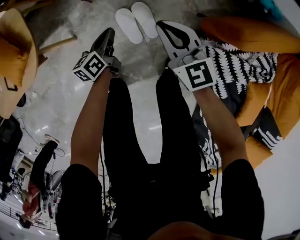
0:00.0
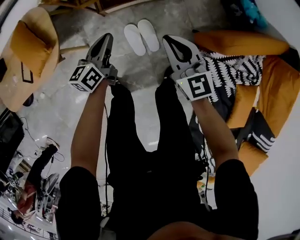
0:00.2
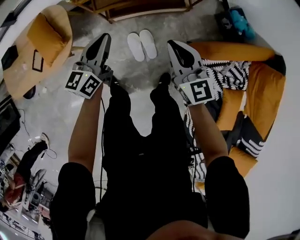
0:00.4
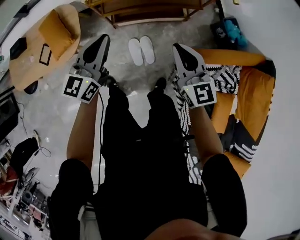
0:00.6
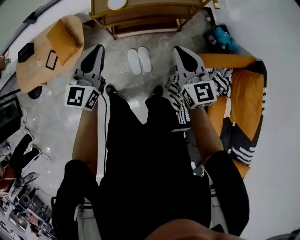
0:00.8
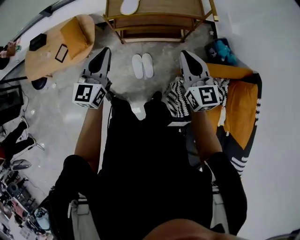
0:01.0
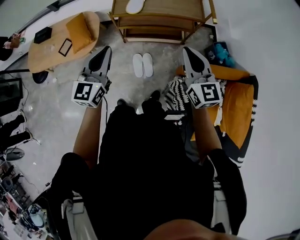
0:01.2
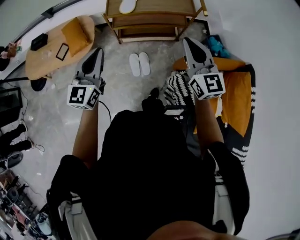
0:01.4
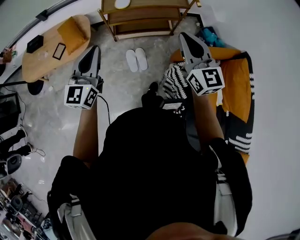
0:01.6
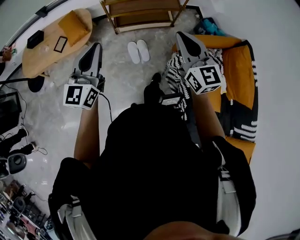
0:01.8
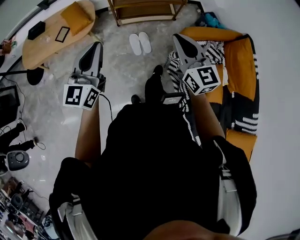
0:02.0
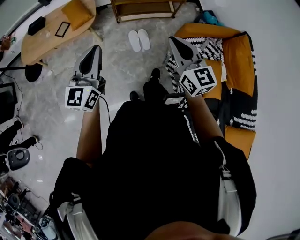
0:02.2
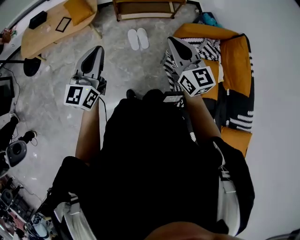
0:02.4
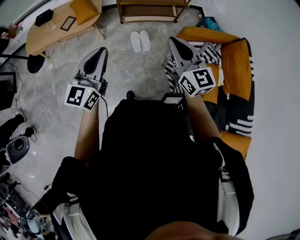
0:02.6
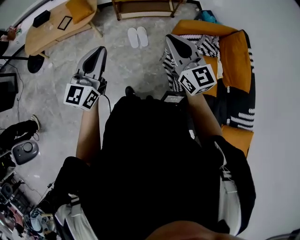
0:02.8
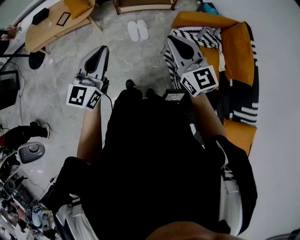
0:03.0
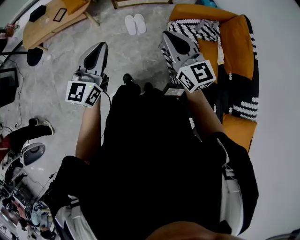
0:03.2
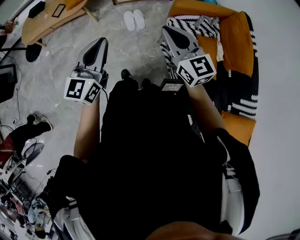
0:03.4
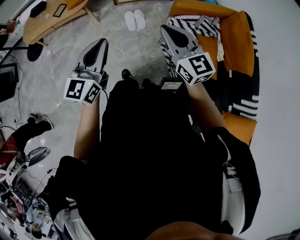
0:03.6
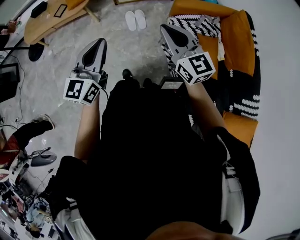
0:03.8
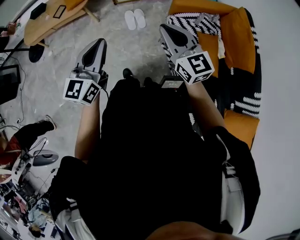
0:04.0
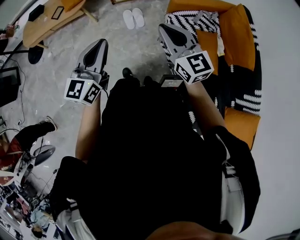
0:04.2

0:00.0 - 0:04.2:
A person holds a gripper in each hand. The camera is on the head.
0:00.0 - 0:01.4: The grippers both shift upward by approximately 60 cm. The left gripper twists some 50 degrees clockwise, seen from behind.
0:01.4 - 0:02.8: Both grippers move backward, about 35 cm.
0:02.8 - 0:04.2: The left gripper travels to the right and backward by approximately 15 cm, while the right gripper moves backward and to the right, approximately 10 cm.

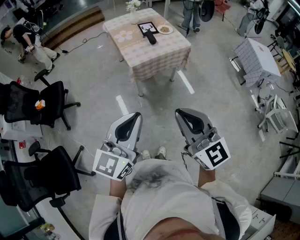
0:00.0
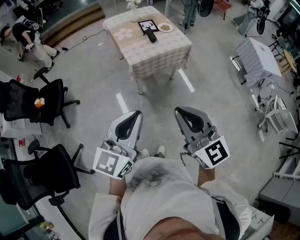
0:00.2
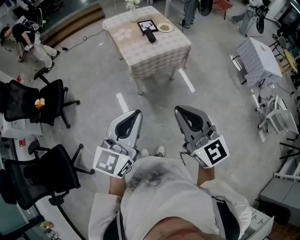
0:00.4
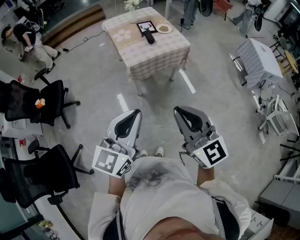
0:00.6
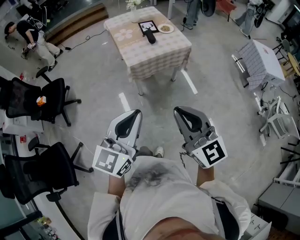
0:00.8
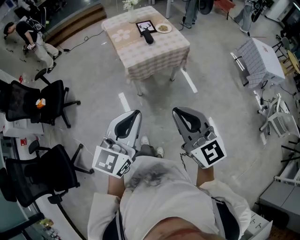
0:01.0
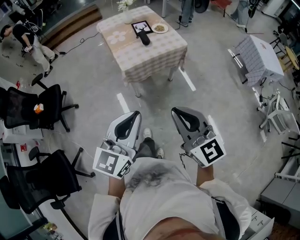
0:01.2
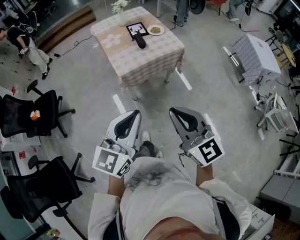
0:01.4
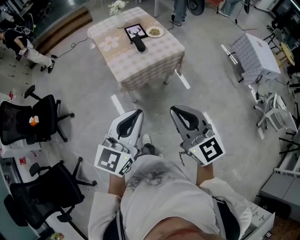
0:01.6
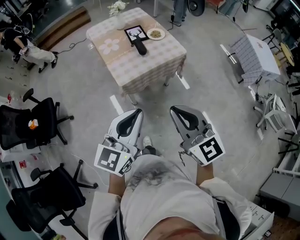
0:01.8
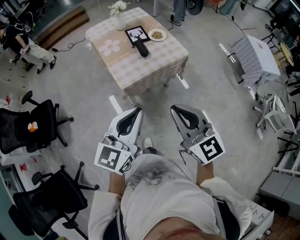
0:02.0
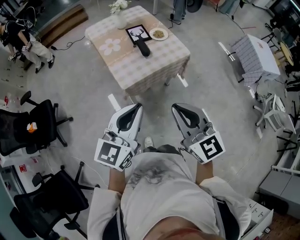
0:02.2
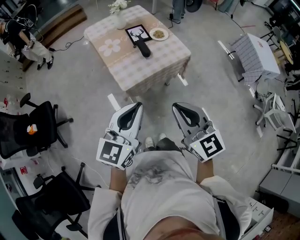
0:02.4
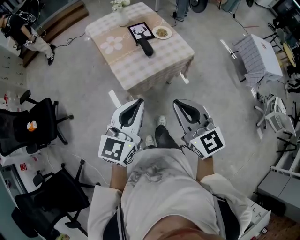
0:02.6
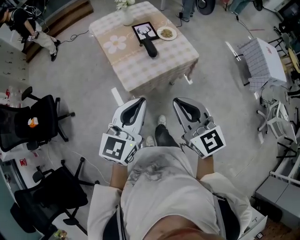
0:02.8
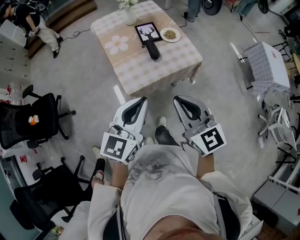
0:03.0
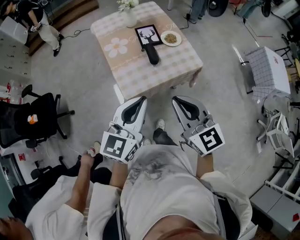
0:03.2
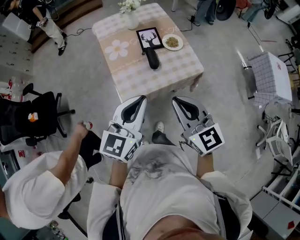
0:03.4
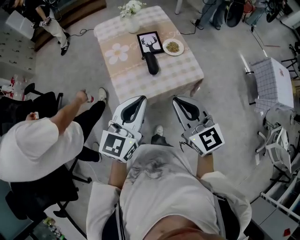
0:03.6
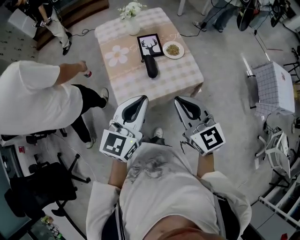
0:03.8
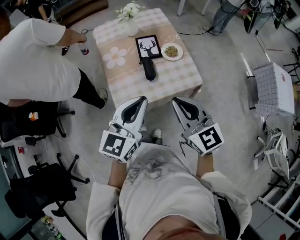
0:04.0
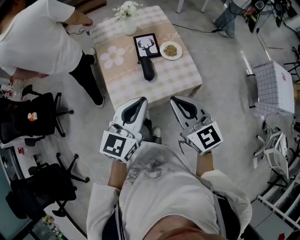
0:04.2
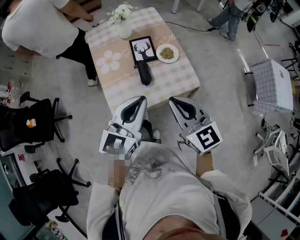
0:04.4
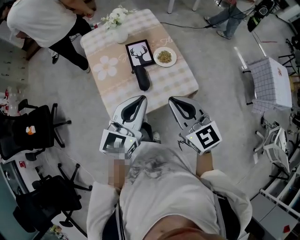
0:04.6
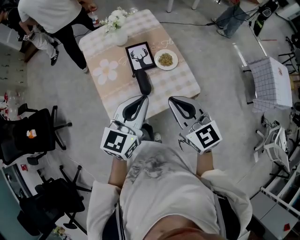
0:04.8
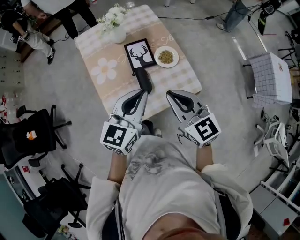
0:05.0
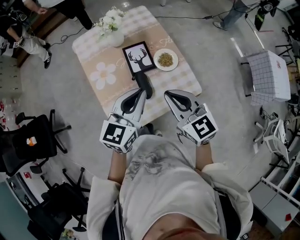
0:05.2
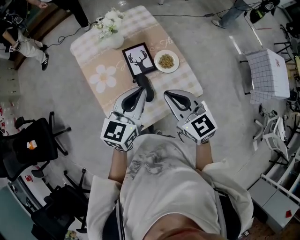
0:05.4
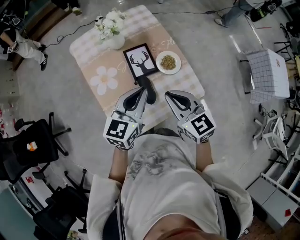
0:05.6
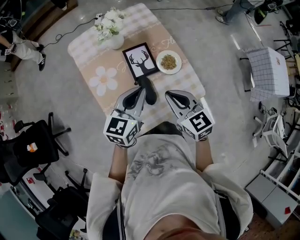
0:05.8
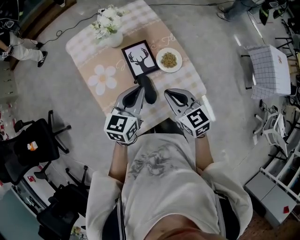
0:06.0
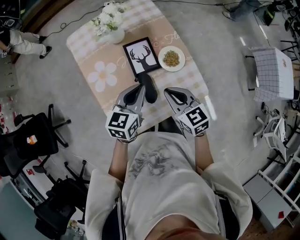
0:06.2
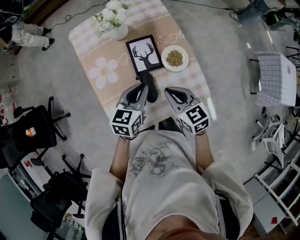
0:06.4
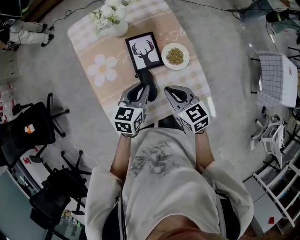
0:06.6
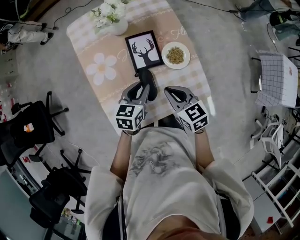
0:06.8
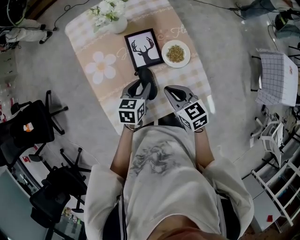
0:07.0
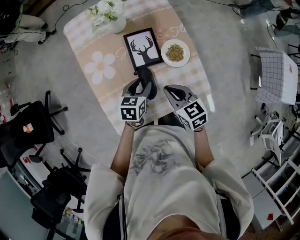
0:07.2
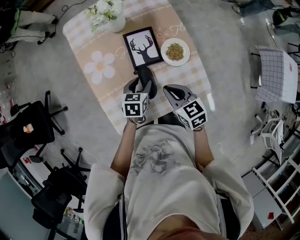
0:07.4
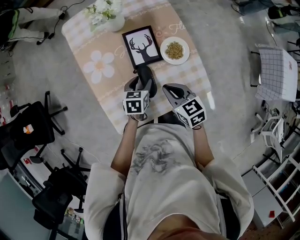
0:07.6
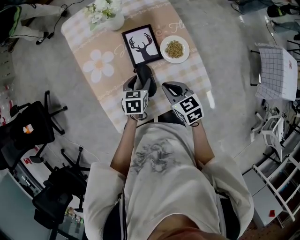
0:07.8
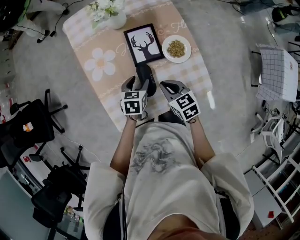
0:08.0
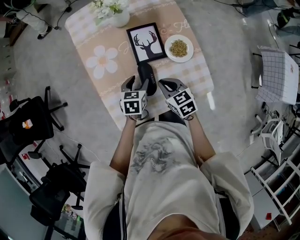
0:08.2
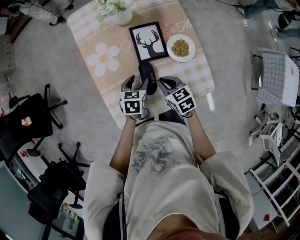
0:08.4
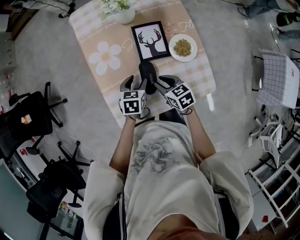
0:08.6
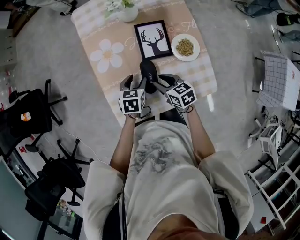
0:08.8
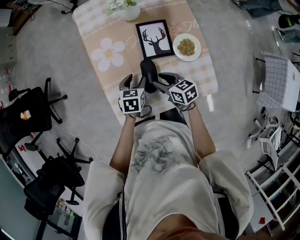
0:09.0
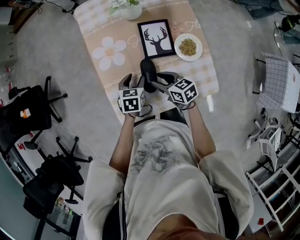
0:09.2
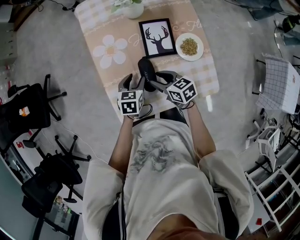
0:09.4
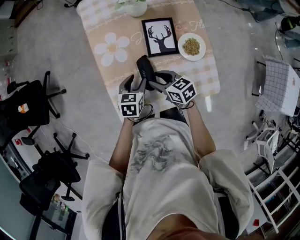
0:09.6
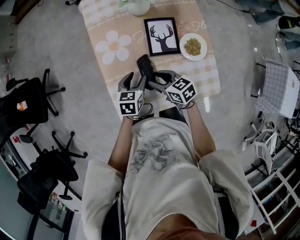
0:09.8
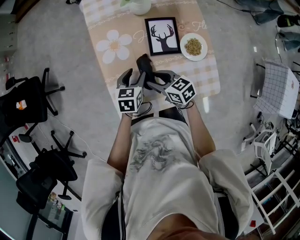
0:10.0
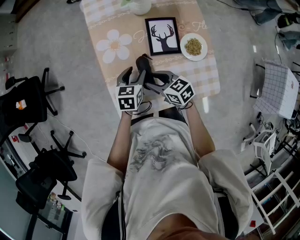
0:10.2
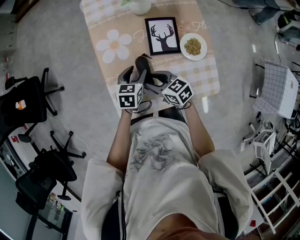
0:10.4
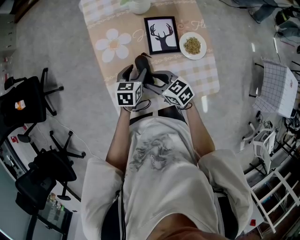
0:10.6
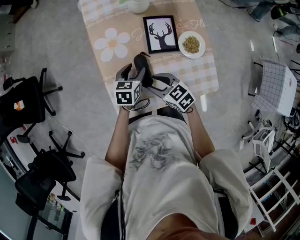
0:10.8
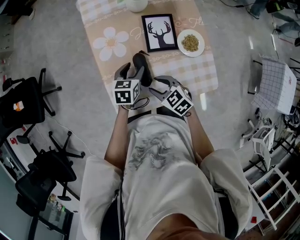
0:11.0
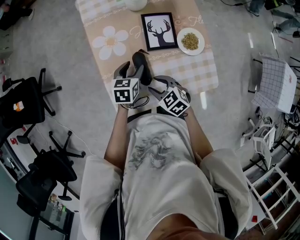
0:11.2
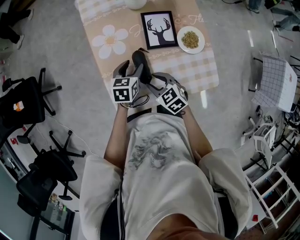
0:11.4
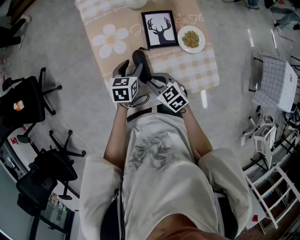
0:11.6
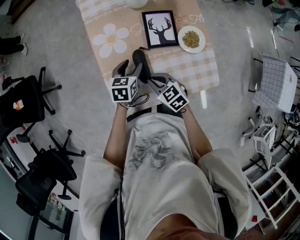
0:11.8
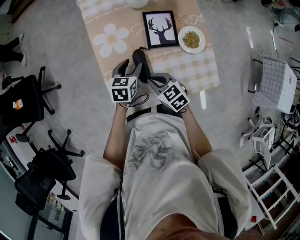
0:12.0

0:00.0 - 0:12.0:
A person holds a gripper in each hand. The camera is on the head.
0:00.0 - 0:01.6: The right gripper is displaced forward by roughly 15 cm. Meanwhile the left gripper heads forward and to the right, covering approximately 20 cm.
0:01.6 - 0:03.0: The grippers both shift forward by some 20 cm.
0:03.0 - 0:04.4: Both grippers travel together forward and to the right, some 20 cm.
0:04.4 - 0:06.0: Both grippers travel together forward and downward, approximately 25 cm.
0:06.0 - 0:07.6: The left gripper travels downward by some 20 cm, points its fingers some 30 degrees further downward, and opens up. The right gripper travels downward by approximately 10 cm.
0:07.6 - 0:09.0: The left gripper goes roughly 10 cm to the left. Meanwhile the right gripper moves downward and to the left, approximately 10 cm, and opens up.
0:09.0 - 0:10.4: The right gripper heads to the left, covering some 5 cm.
0:10.4 - 0:12.0: The right gripper closes.

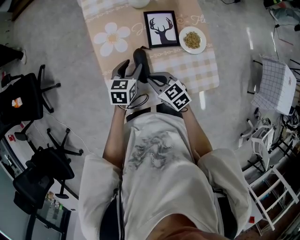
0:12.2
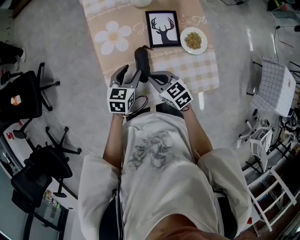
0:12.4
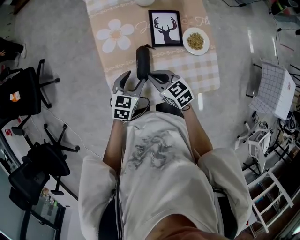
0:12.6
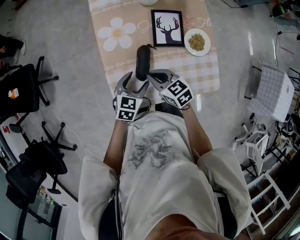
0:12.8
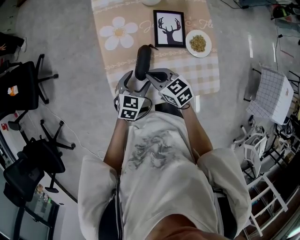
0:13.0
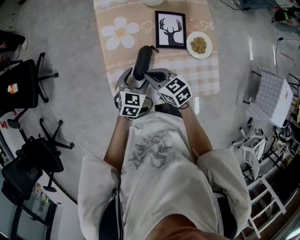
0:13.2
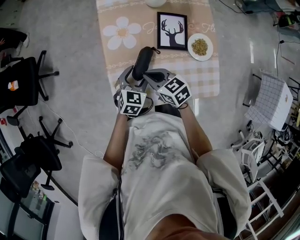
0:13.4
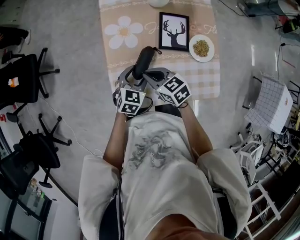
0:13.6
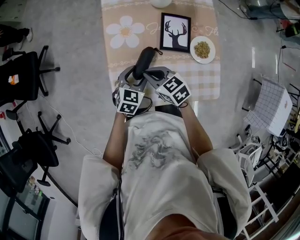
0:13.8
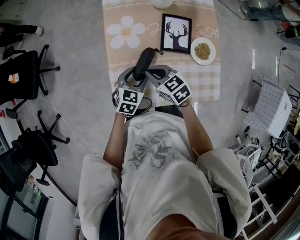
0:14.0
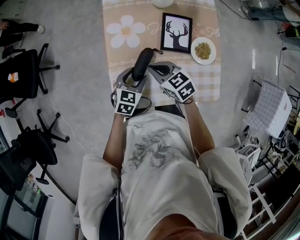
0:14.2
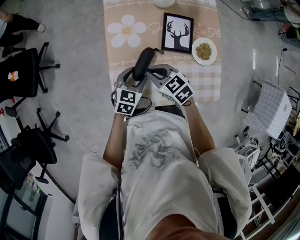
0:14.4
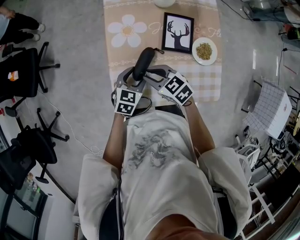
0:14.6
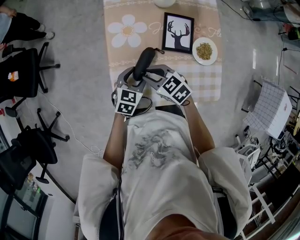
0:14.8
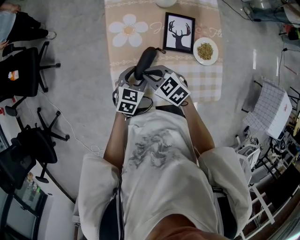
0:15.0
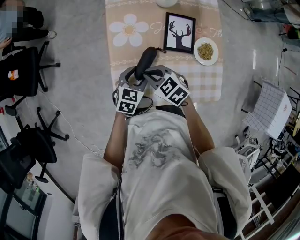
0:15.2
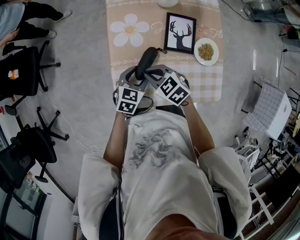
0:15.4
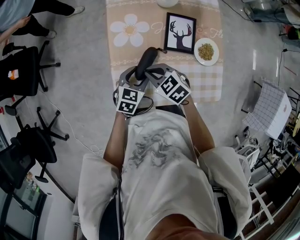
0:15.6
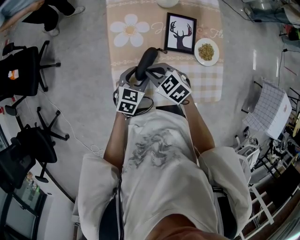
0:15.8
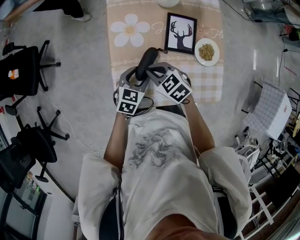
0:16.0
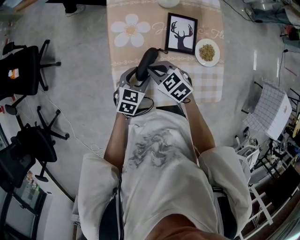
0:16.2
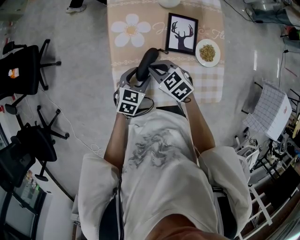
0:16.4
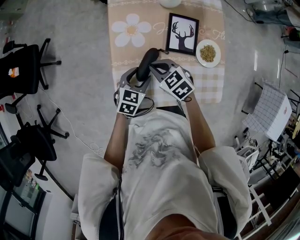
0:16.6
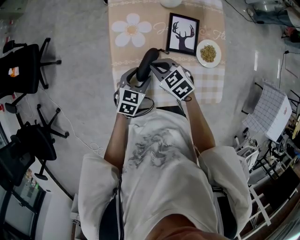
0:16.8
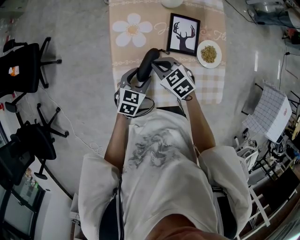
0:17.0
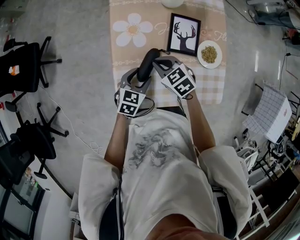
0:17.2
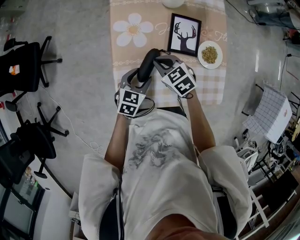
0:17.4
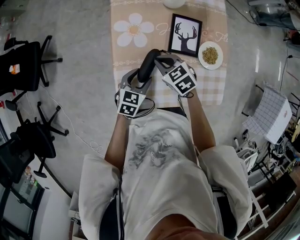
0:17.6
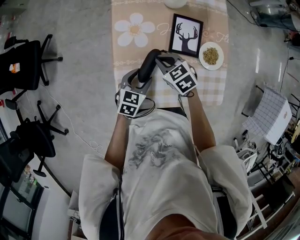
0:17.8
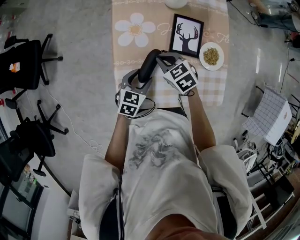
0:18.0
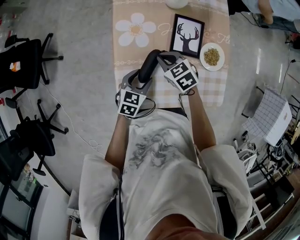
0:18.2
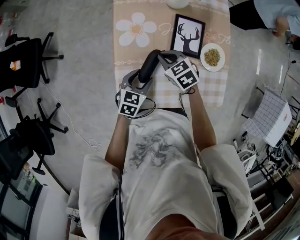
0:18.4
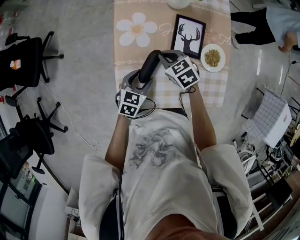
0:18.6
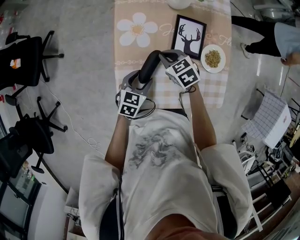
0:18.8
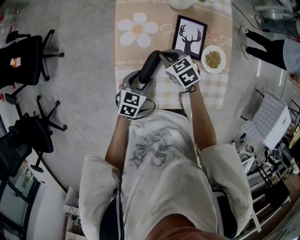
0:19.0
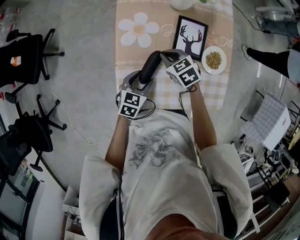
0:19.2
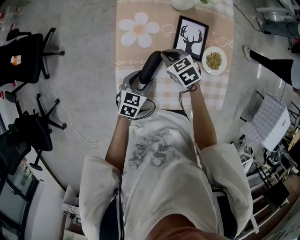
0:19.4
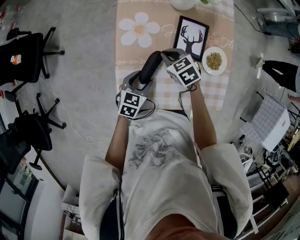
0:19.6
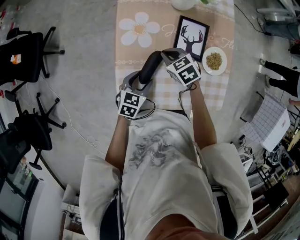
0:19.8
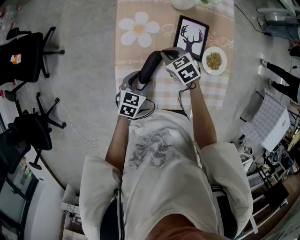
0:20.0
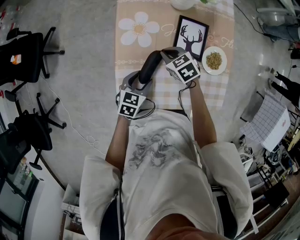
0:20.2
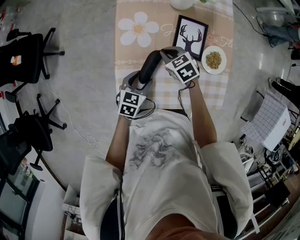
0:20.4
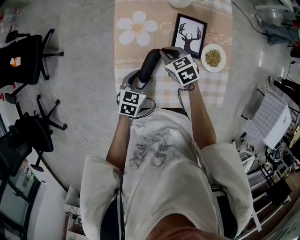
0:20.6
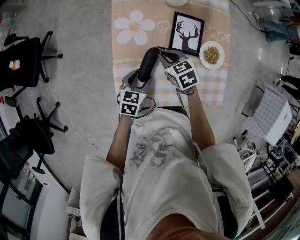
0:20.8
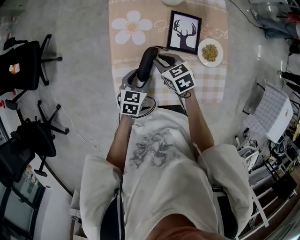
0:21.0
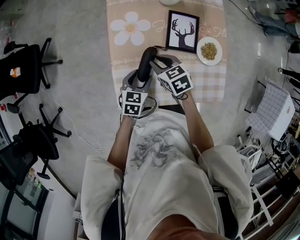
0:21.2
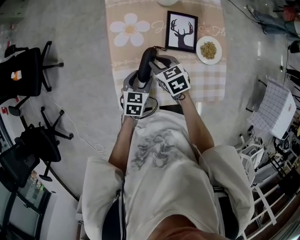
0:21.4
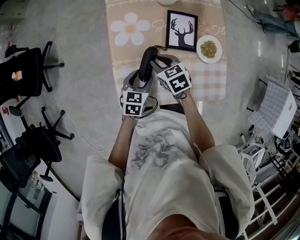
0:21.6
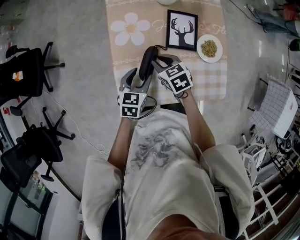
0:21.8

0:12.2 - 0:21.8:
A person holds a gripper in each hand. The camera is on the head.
0:12.2 - 0:13.8: The right gripper changes place by approximately 5 cm.
0:13.8 - 0:15.4: The grippers stay close to where they were, moving slightly.
0:15.4 - 0:17.0: The right gripper shifts by some 5 cm.
0:17.0 - 0:18.6: The right gripper changes place by approximately 5 cm.
0:18.6 - 0:20.2: The grippers stay close to where they were, moving slightly.
0:20.2 - 0:21.8: The right gripper heads backward, covering roughly 5 cm.
